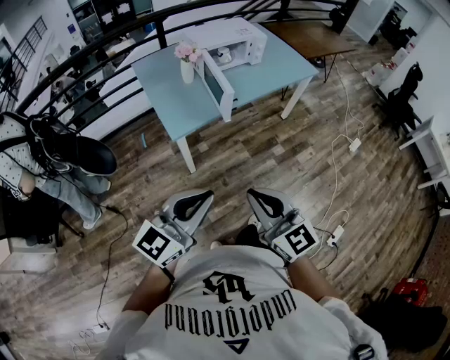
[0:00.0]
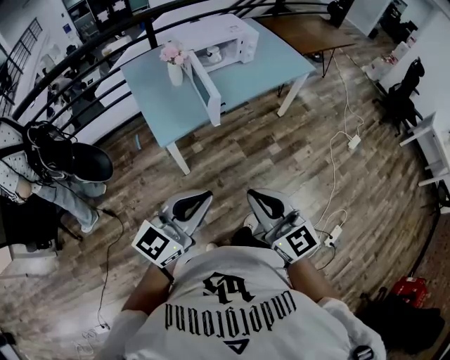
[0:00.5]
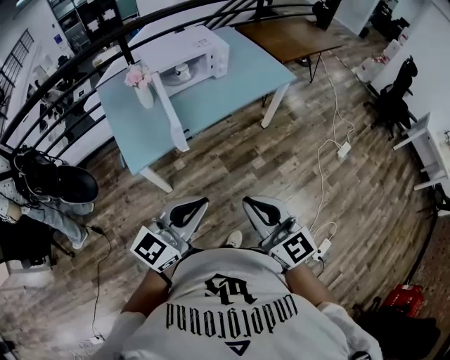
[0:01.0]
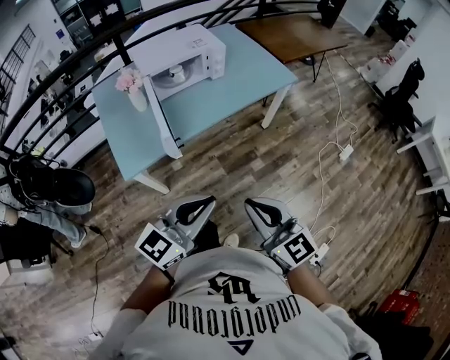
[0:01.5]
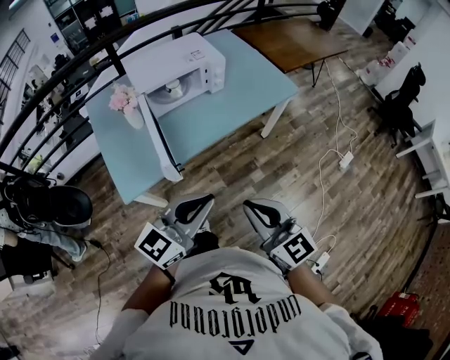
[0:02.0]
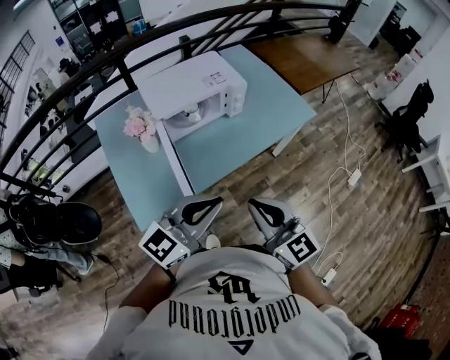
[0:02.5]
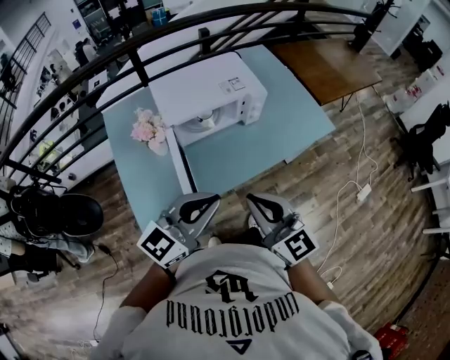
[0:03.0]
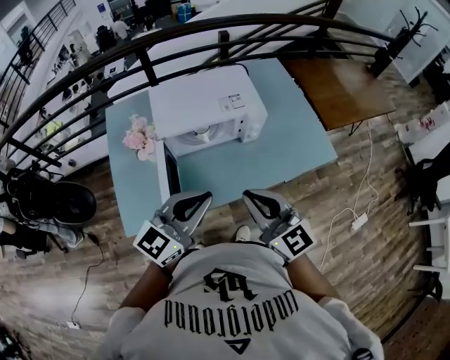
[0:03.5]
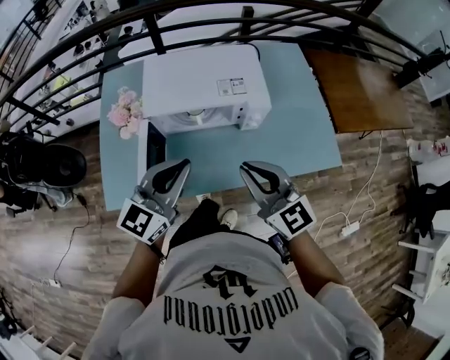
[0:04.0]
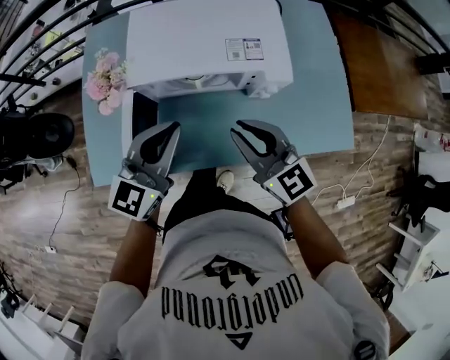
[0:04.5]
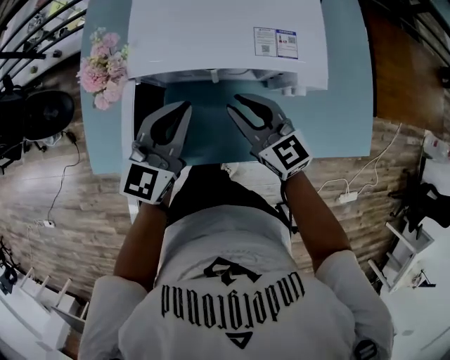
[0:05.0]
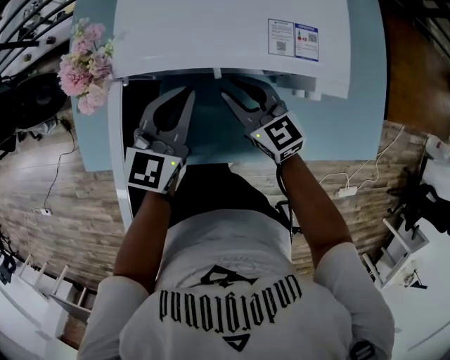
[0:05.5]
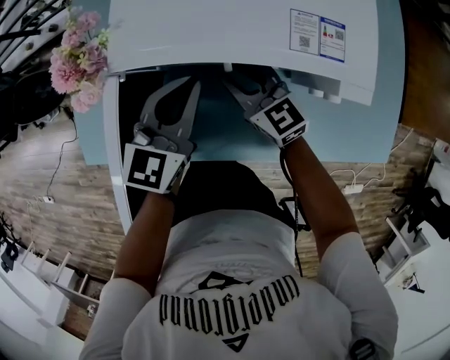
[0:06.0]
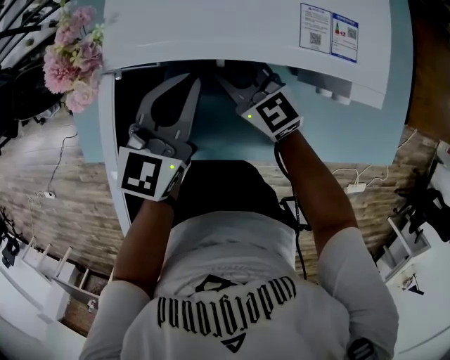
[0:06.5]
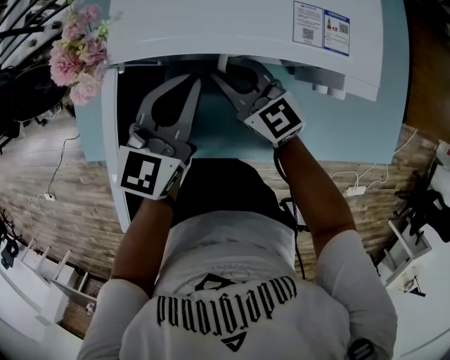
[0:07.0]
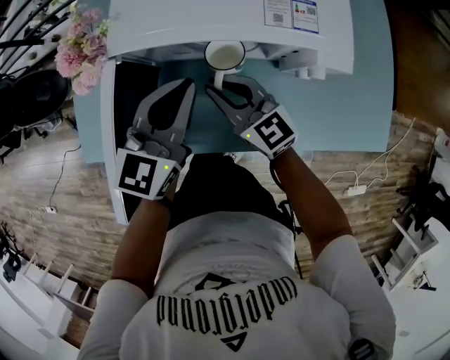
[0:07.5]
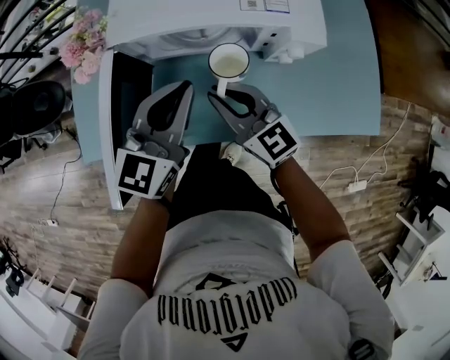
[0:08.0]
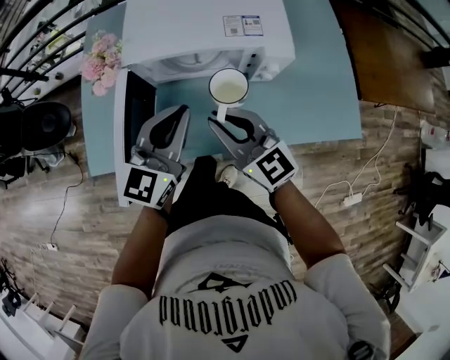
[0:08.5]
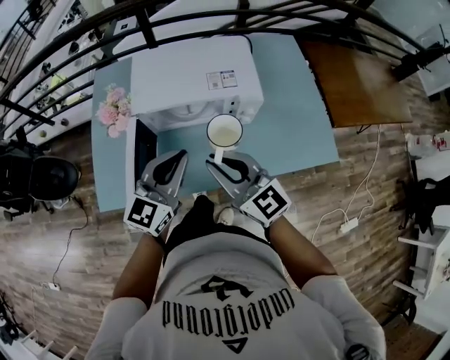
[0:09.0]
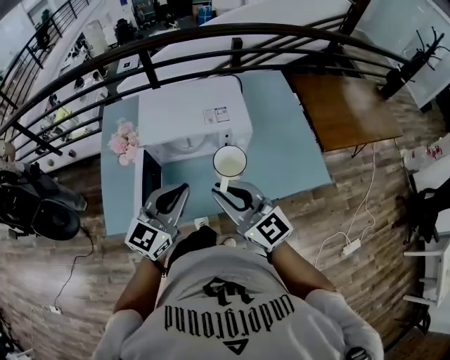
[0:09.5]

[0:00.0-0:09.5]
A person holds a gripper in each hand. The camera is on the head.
0:00.0 to 0:02.0: The two grippers go roughly 40 cm forward and to the right.
0:02.0 to 0:04.0: The right gripper ends up about 40 cm from where it was, and changes its angle by roughly 20 degrees, while the left gripper shifts by roughly 40 cm, and swivels some 30 degrees.
0:04.0 to 0:05.5: Both grippers travel together downward and forward, approximately 30 cm. The left gripper rotates some 20 degrees.
0:05.5 to 0:07.5: The right gripper moves roughly 5 cm.
0:07.5 to 0:09.5: The grippers both shift upward and backward by some 30 cm. The left gripper swivels some 20 degrees.

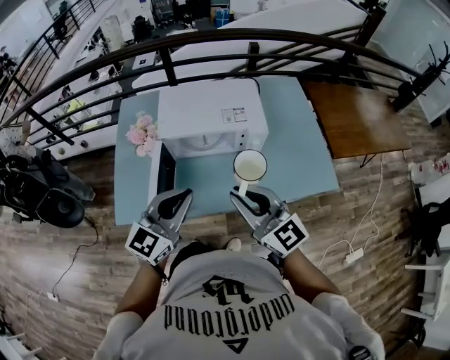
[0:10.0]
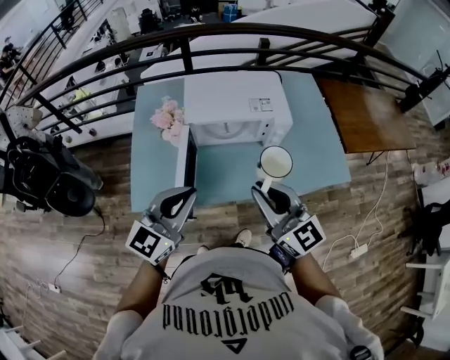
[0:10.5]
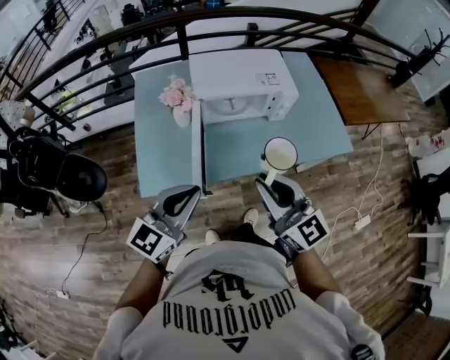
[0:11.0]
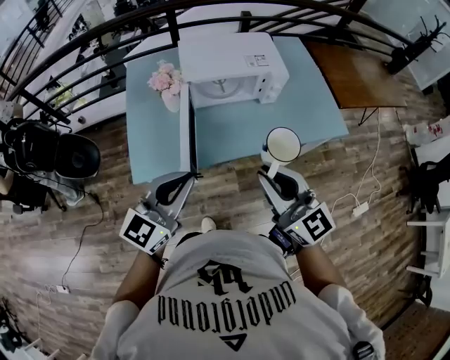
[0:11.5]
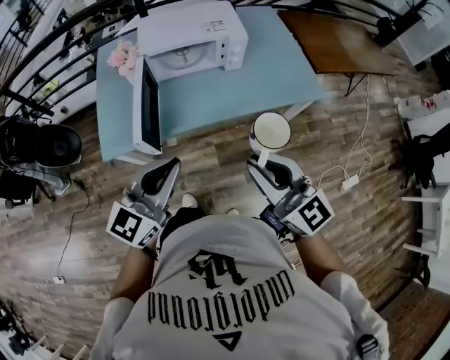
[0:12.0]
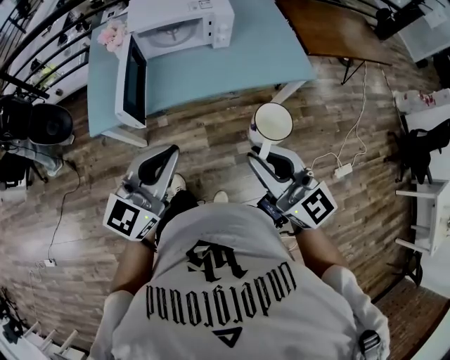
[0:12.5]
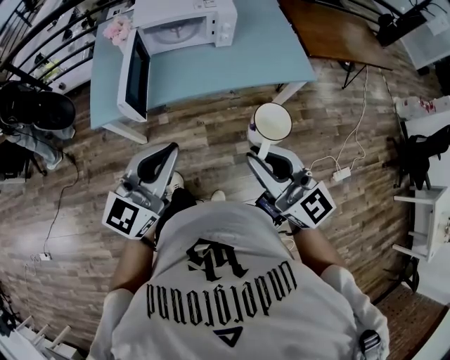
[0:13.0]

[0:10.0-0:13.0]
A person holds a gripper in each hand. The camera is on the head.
0:10.0 to 0:11.5: Both grippers move backward and to the left, approximately 20 cm.
0:11.5 to 0:13.0: The left gripper is displaced to the right and backward by roughly 25 cm; the right gripper heads backward and to the right, covering about 25 cm.

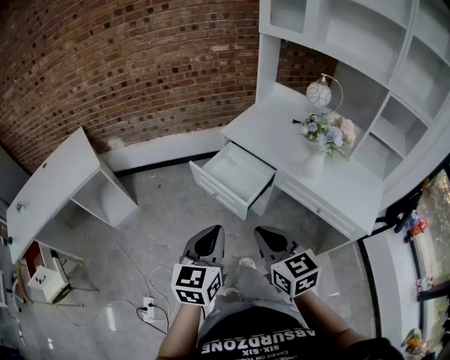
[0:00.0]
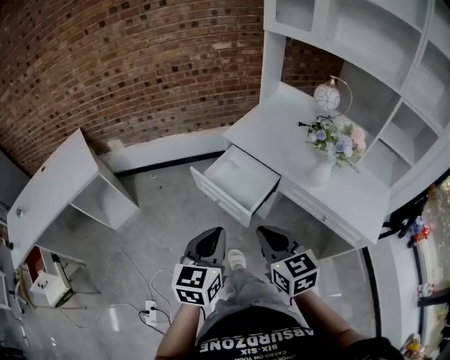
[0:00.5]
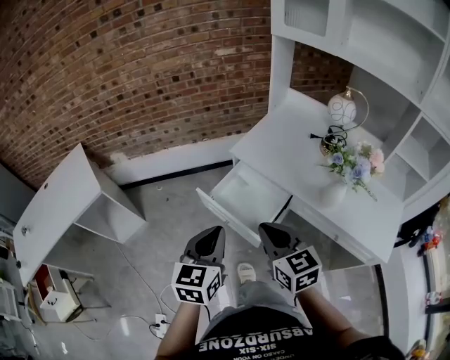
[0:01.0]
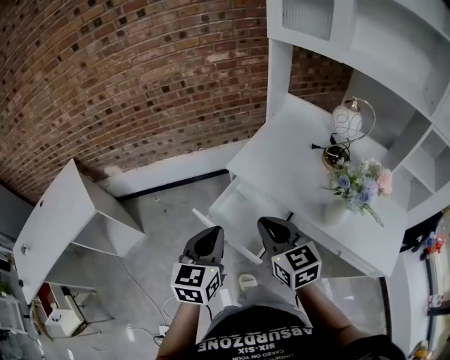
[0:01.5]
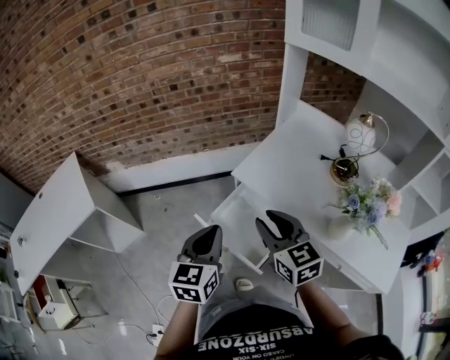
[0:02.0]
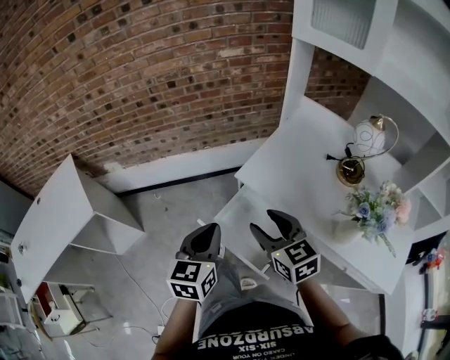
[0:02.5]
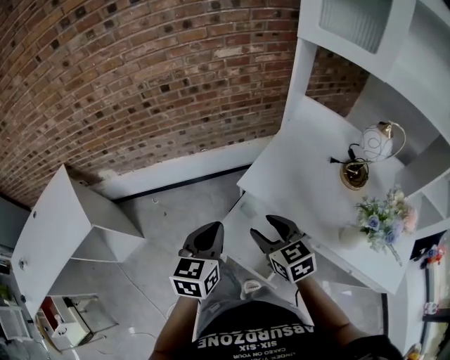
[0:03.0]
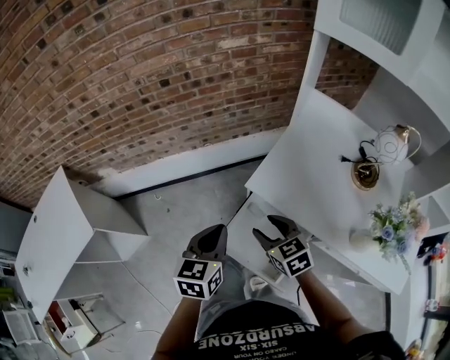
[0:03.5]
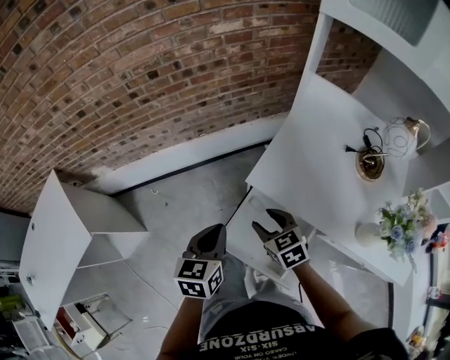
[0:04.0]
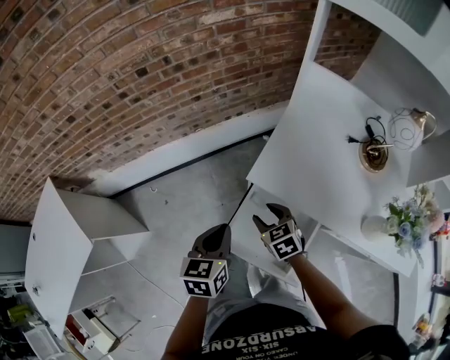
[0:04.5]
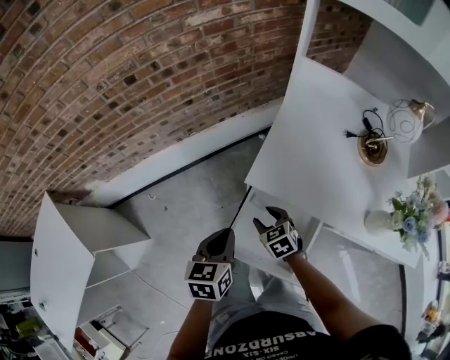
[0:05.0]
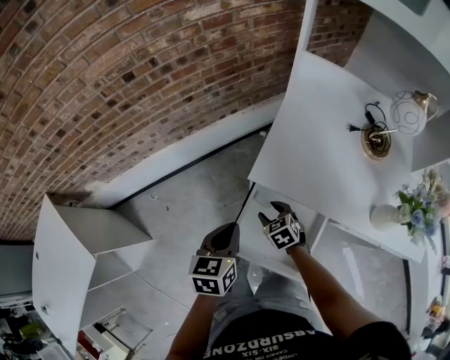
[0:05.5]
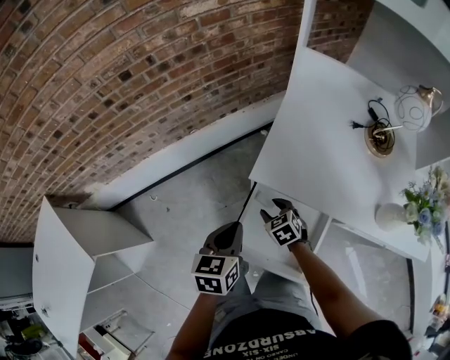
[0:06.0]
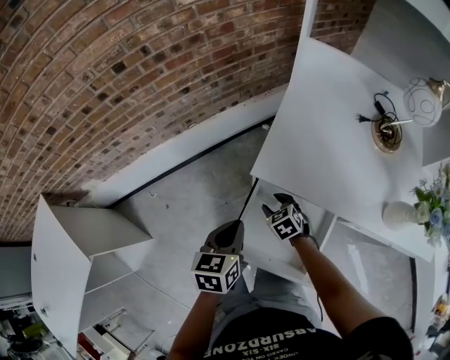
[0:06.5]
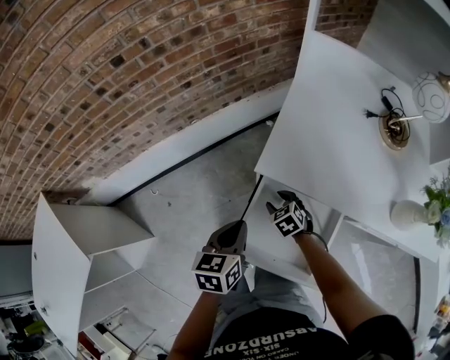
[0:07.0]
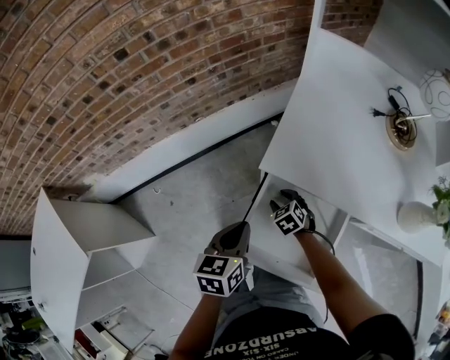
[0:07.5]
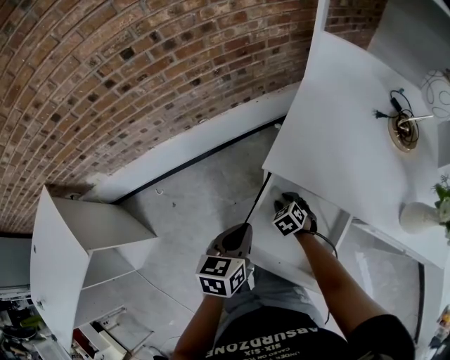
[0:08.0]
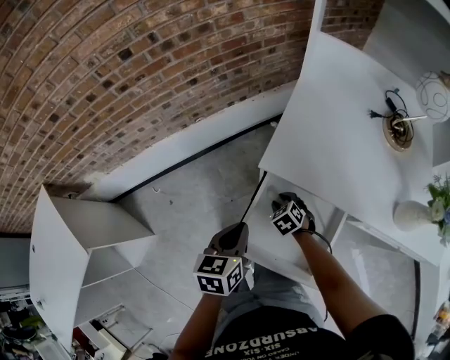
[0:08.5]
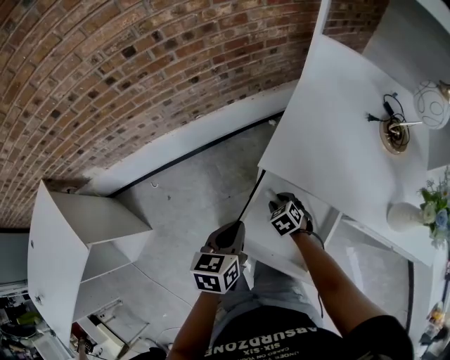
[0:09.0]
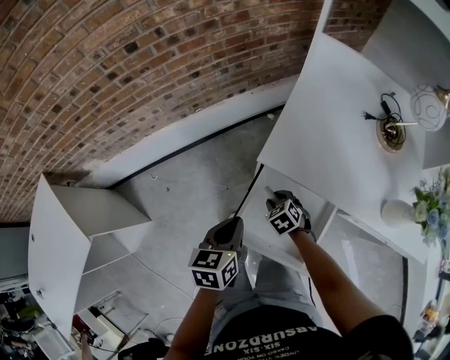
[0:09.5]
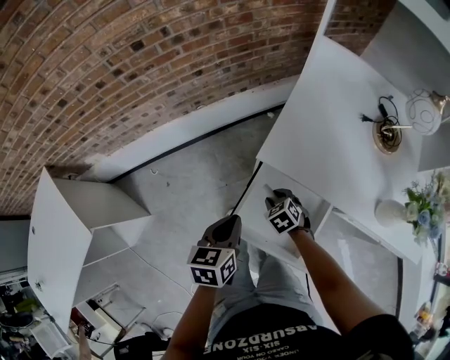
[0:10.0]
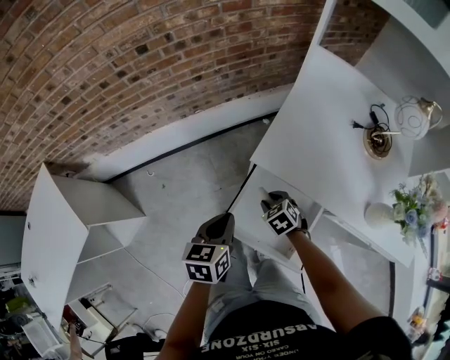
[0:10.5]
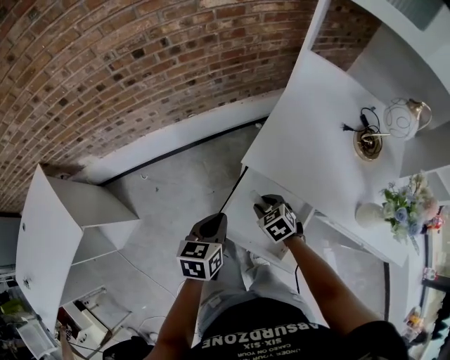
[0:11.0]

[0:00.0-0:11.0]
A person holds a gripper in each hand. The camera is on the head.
0:00.0 to 0:02.0: The grippers both shift forward by approximately 35 cm. The right gripper opens its fingers.
0:02.0 to 0:03.5: The right gripper goes some 20 cm forward, downward and to the left, and opens; the left gripper goes approximately 15 cm forward and downward.
0:03.5 to 0:05.5: The left gripper shifts some 10 cm downward. The right gripper shifts approximately 20 cm downward, and rotates approximately 20 degrees.
0:05.5 to 0:07.5: Both grippers travel together downward, roughly 10 cm.
0:07.5 to 0:09.0: There are only small adjustments of the grippers.
0:09.0 to 0:11.0: The right gripper goes some 15 cm upward, while the left gripper travels upward by some 5 cm.

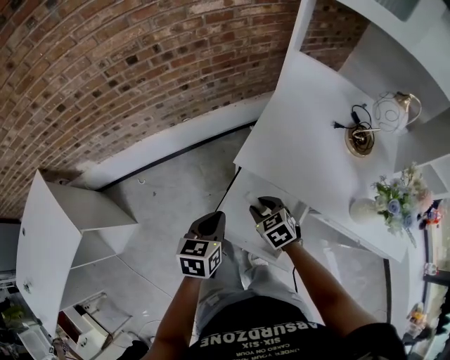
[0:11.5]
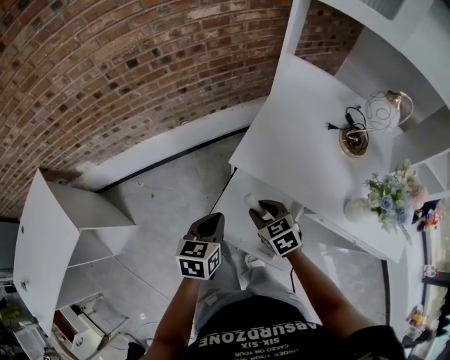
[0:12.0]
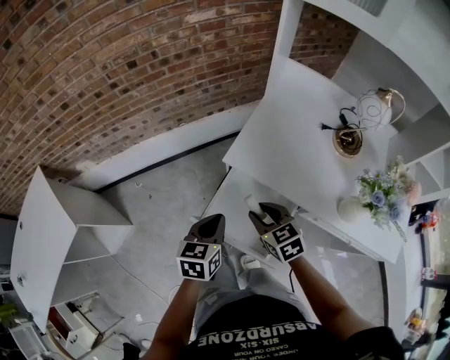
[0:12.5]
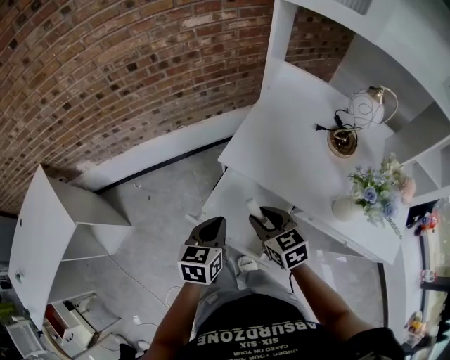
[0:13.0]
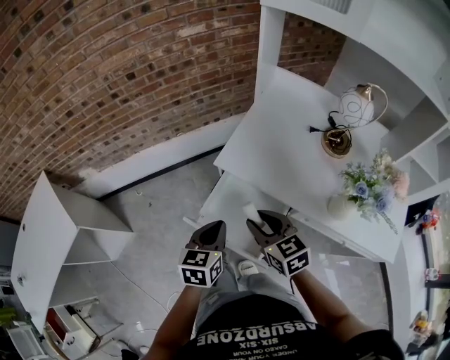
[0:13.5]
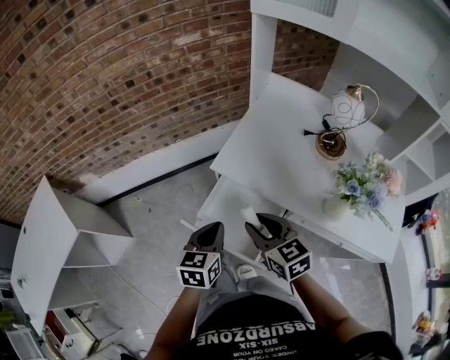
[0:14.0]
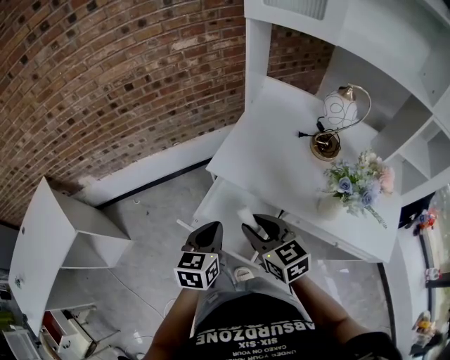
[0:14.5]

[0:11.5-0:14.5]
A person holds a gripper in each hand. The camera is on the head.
0:11.5 to 0:13.0: The right gripper goes approximately 15 cm upward, backward and to the right; the left gripper moves backward and to the right, roughly 10 cm.
0:13.0 to 0:14.5: The right gripper moves upward and backward, some 10 cm, while the left gripper moves roughly 5 cm.
